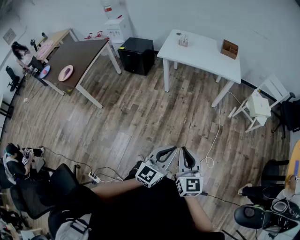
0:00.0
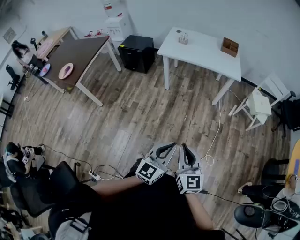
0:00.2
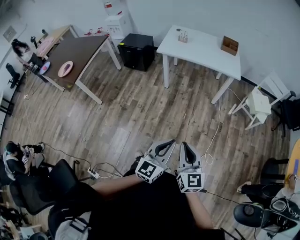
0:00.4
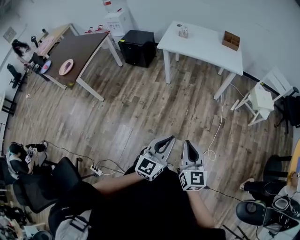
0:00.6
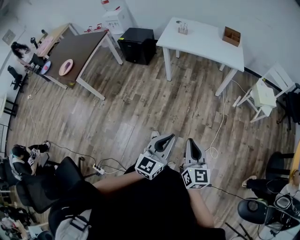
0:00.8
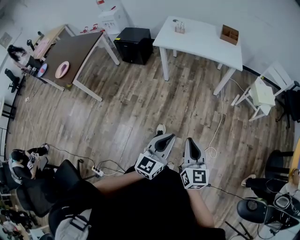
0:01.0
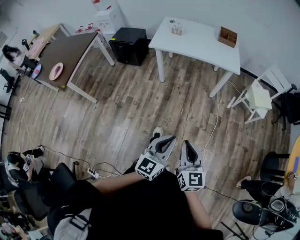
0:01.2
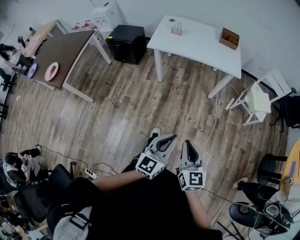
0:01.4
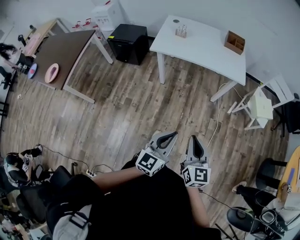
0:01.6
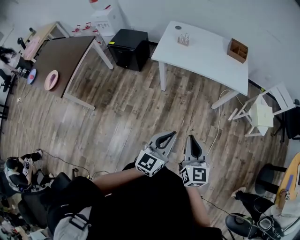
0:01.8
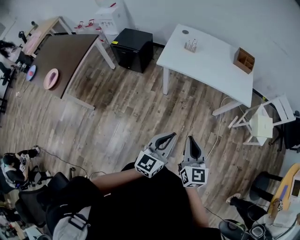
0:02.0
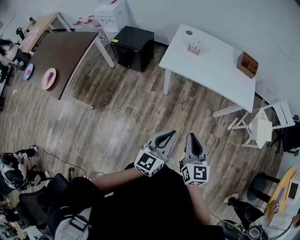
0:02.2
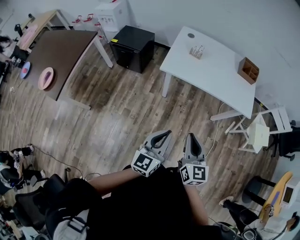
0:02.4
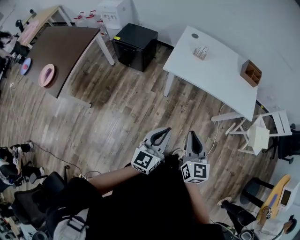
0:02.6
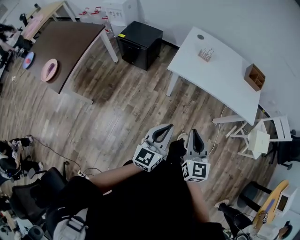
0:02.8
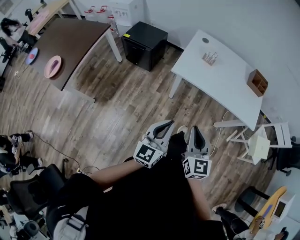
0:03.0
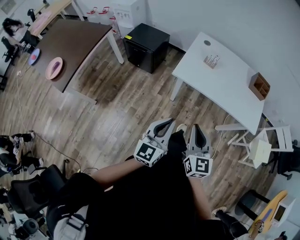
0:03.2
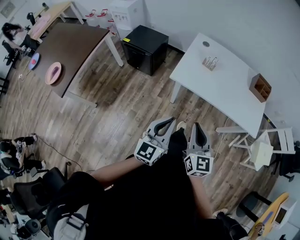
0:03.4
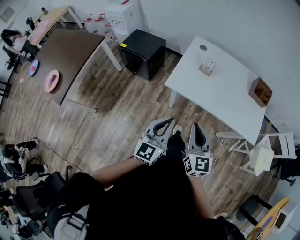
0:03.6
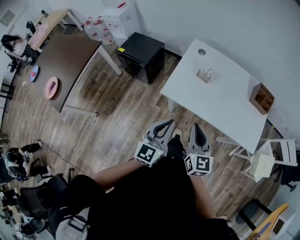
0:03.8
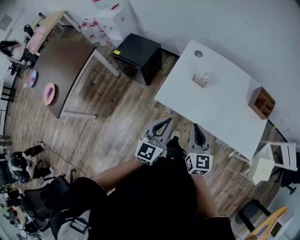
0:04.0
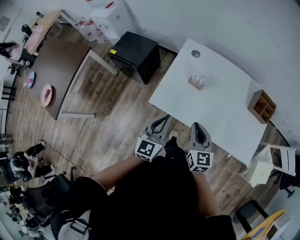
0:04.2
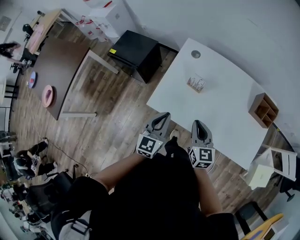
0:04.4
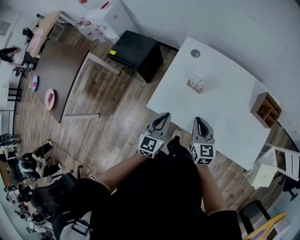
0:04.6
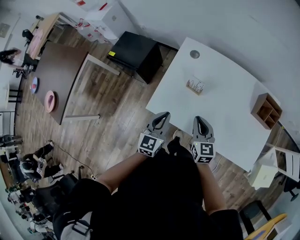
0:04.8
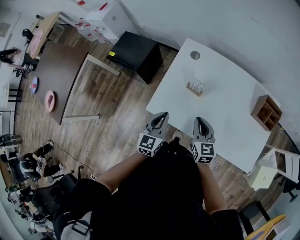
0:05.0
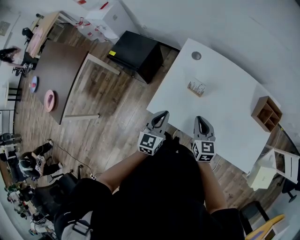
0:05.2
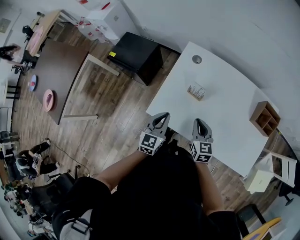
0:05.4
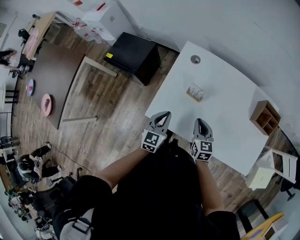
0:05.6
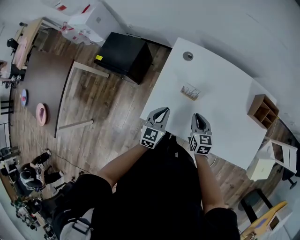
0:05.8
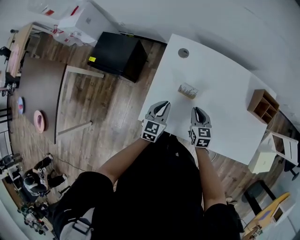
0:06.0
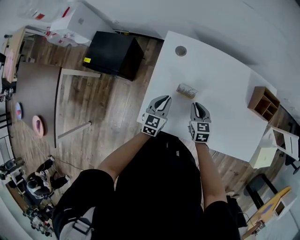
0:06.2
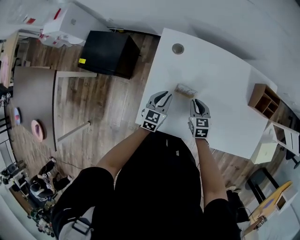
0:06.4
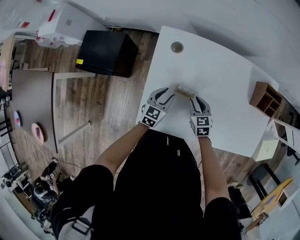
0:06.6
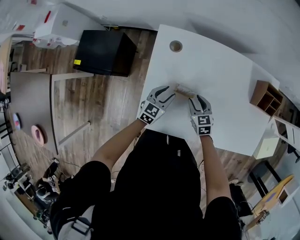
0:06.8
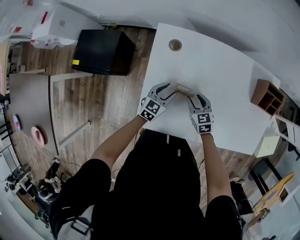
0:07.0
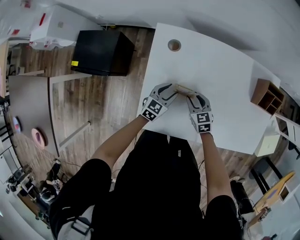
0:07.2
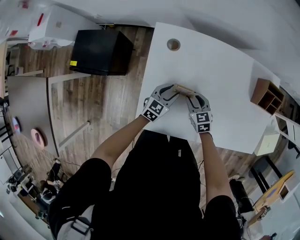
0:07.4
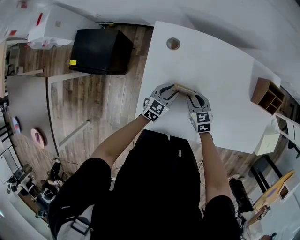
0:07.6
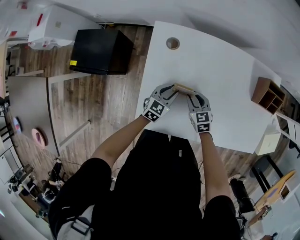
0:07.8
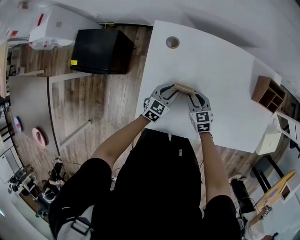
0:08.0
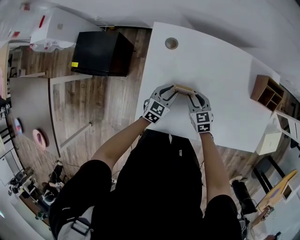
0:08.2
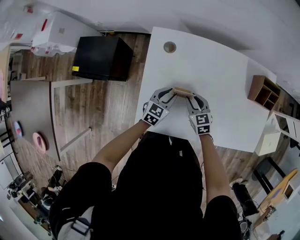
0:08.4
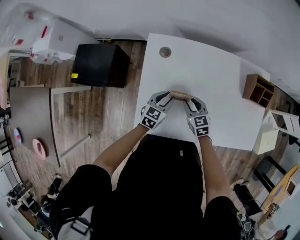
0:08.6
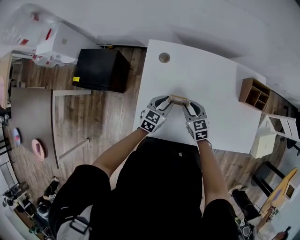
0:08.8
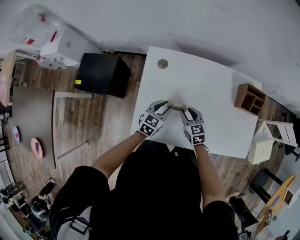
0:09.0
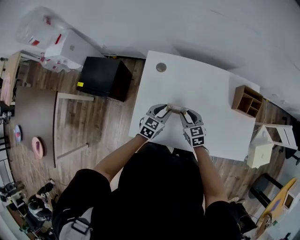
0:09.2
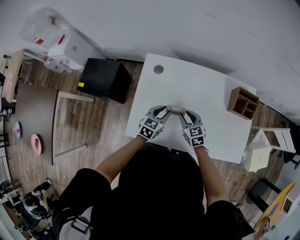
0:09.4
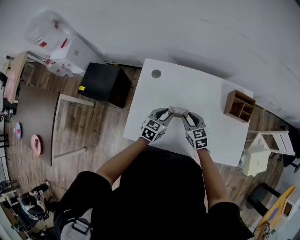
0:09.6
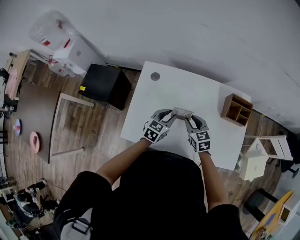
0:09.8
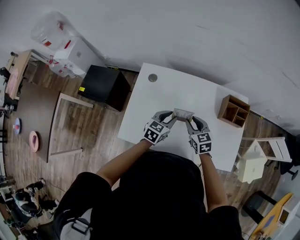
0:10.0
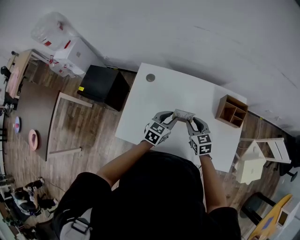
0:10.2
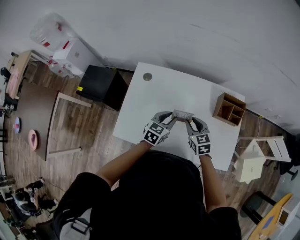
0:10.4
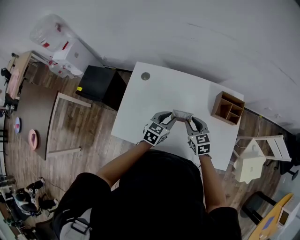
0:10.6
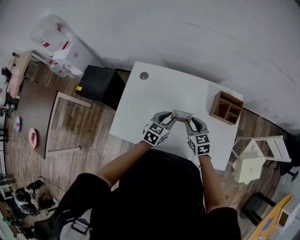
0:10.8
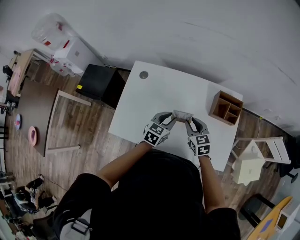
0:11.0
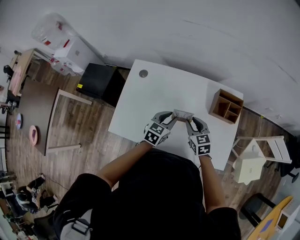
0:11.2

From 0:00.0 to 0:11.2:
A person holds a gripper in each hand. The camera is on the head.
From 0:00.0 to 0:01.6: The two grippers go some 20 cm forward.
From 0:01.6 to 0:03.2: The two grippers go approximately 35 cm forward and to the left.
From 0:03.2 to 0:04.8: The pair of grippers is taken forward, some 40 cm.
From 0:04.8 to 0:06.4: The left gripper shifts roughly 25 cm forward and downward, and turns by approximately 20 degrees. The right gripper goes some 20 cm downward and forward, and swivels about 20 degrees.
From 0:06.4 to 0:08.0: The right gripper opens up. The left gripper heads downward, covering approximately 5 cm.
From 0:08.0 to 0:09.6: The two grippers go some 15 cm upward and to the right.
From 0:09.6 to 0:11.2: Both grippers travel together to the right, some 15 cm.

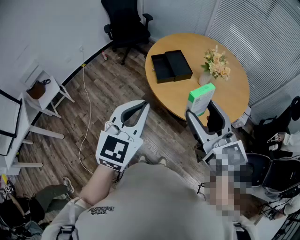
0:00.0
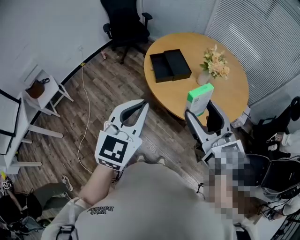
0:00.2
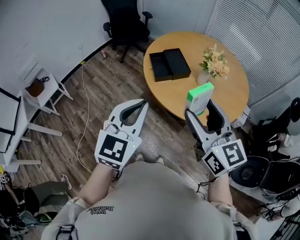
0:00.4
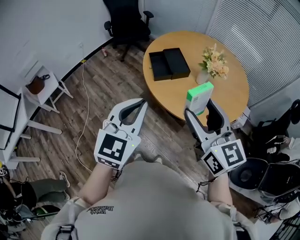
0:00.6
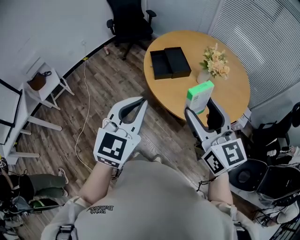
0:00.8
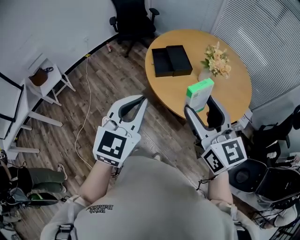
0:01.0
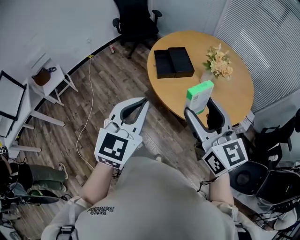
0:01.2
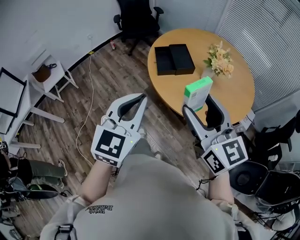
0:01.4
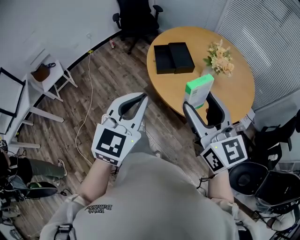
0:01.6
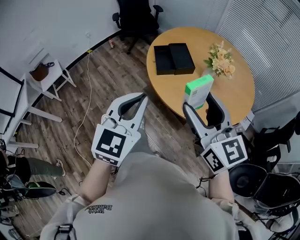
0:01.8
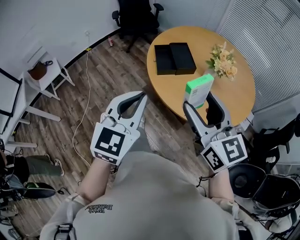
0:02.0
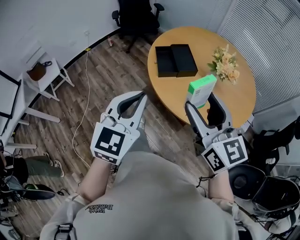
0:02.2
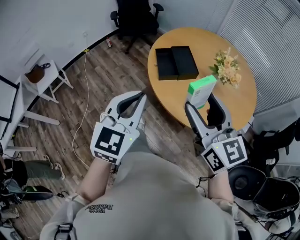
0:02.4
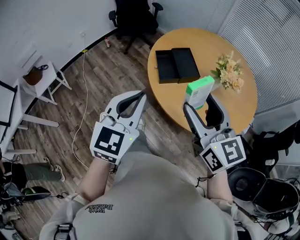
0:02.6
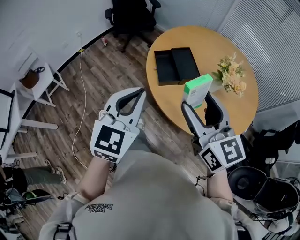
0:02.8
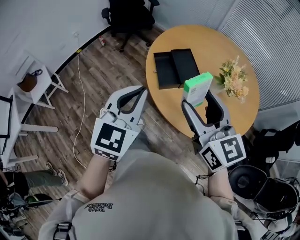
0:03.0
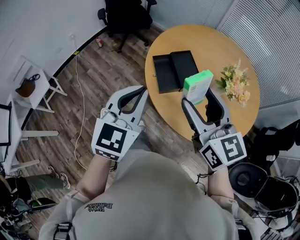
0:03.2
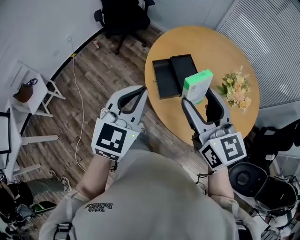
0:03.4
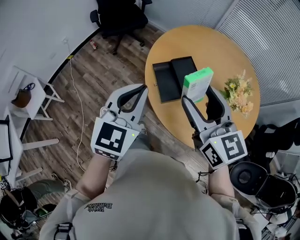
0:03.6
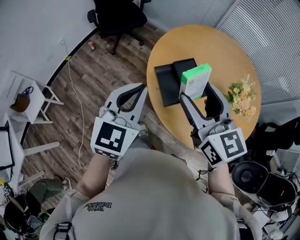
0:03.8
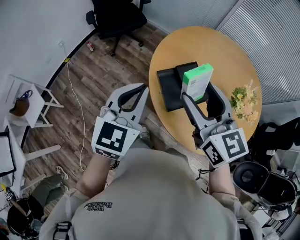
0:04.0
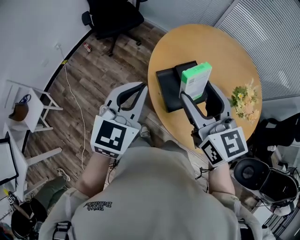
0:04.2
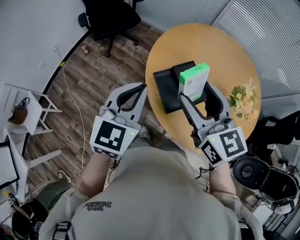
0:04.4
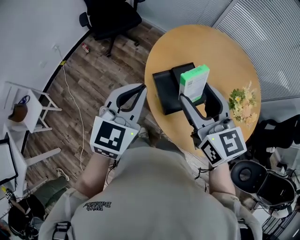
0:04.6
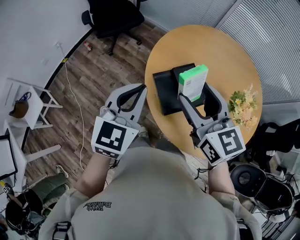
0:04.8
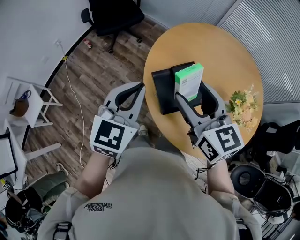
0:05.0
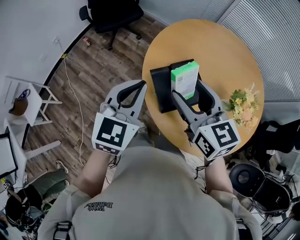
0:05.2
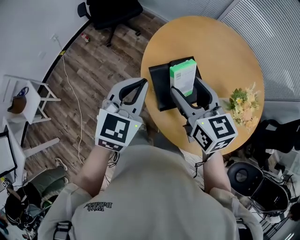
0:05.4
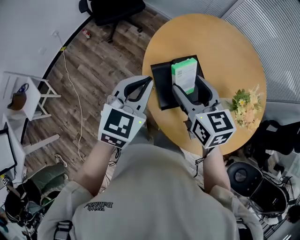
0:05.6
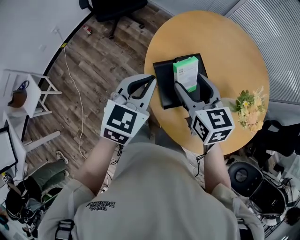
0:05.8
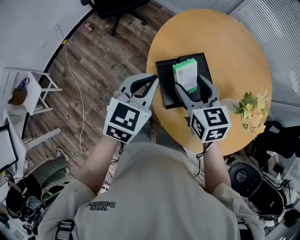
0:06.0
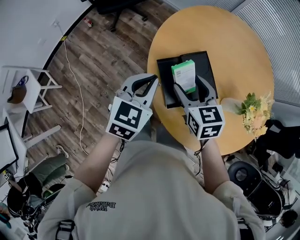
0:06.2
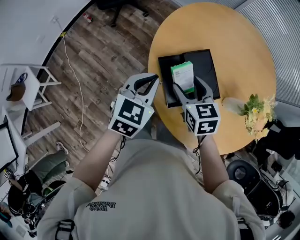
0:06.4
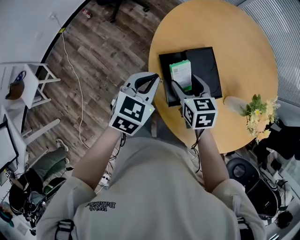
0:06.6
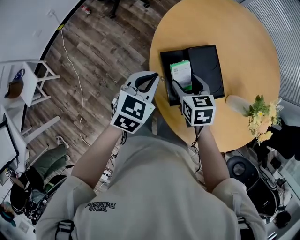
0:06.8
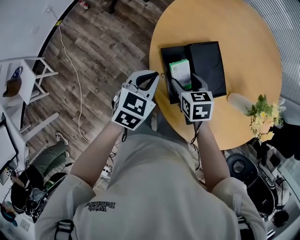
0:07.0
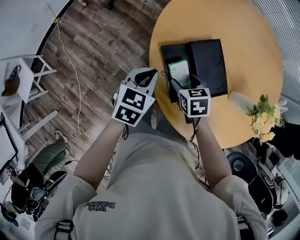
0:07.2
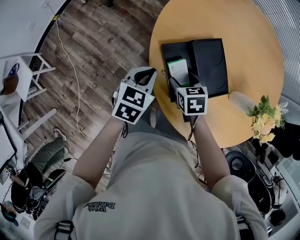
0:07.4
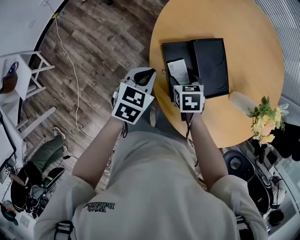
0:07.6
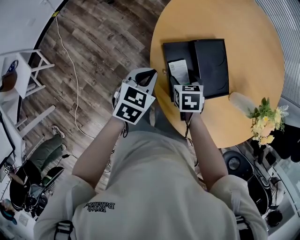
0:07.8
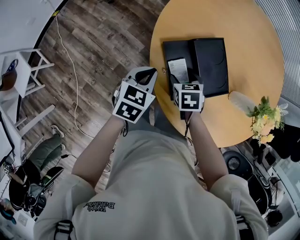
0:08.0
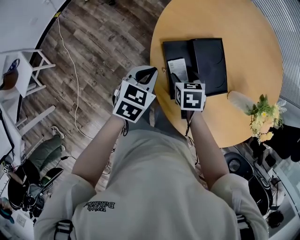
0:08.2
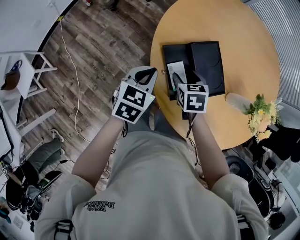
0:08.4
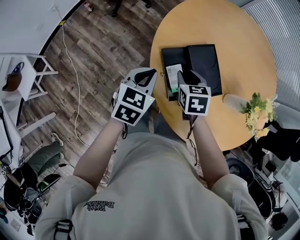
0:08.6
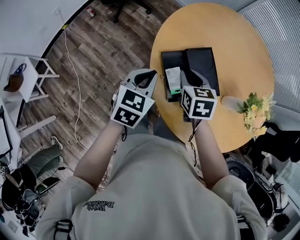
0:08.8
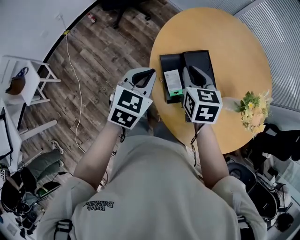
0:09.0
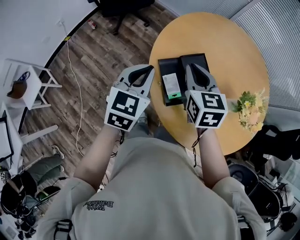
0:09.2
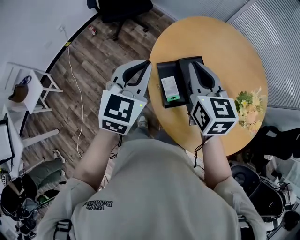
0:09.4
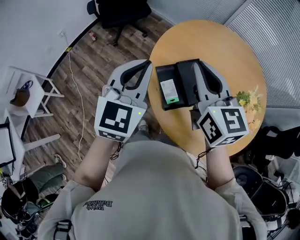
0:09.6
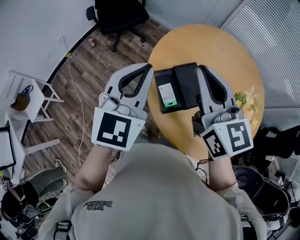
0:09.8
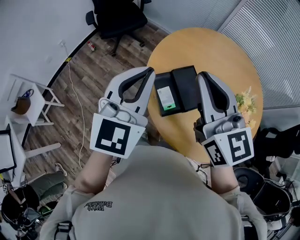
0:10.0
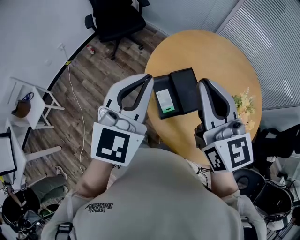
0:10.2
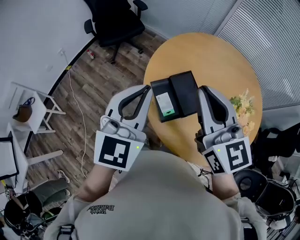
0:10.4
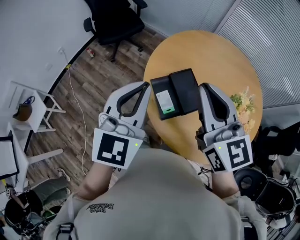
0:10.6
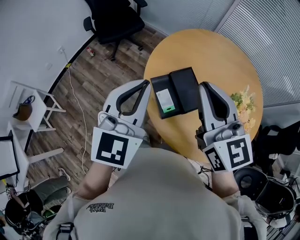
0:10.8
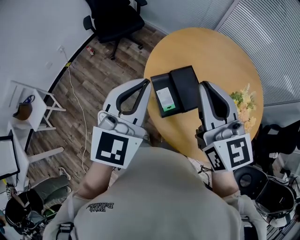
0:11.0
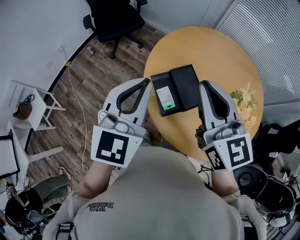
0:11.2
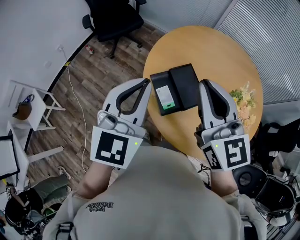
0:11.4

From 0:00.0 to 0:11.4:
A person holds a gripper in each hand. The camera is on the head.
From 0:00.0 to 0:01.4: The grippers make only small movements.
From 0:01.4 to 0:02.8: The two grippers go approximately 15 cm forward.
From 0:02.8 to 0:04.2: The left gripper travels forward by approximately 20 cm. The right gripper travels forward and to the left by about 20 cm.
From 0:04.2 to 0:05.6: The right gripper goes some 15 cm downward and forward, while the left gripper goes some 10 cm downward, to the right and forward.
From 0:05.6 to 0:07.2: Both grippers travel together downward, roughly 25 cm. The right gripper points its fingers some 30 degrees further downward. The left gripper swivels about 30 degrees.
From 0:07.2 to 0:08.6: The right gripper moves upward, some 5 cm, and closes its fingers.
From 0:08.6 to 0:10.0: The grippers both shift upward by about 35 cm. The right gripper tilts its fingers about 50 degrees upward, and closes. Meanwhile the left gripper tips its fingers upward by approximately 30 degrees.
From 0:10.0 to 0:11.4: There are only small adjustments of the grippers.

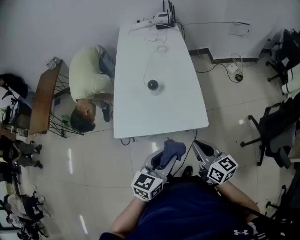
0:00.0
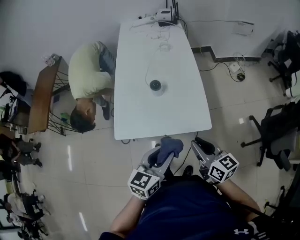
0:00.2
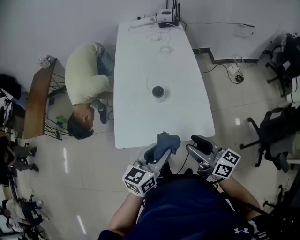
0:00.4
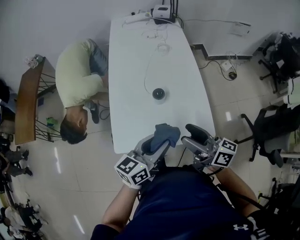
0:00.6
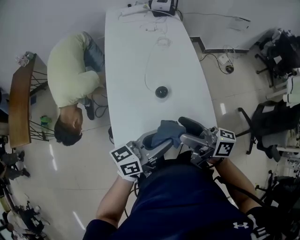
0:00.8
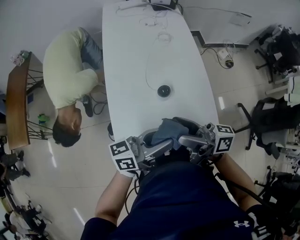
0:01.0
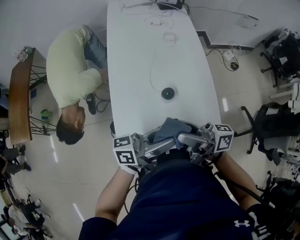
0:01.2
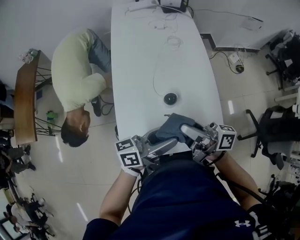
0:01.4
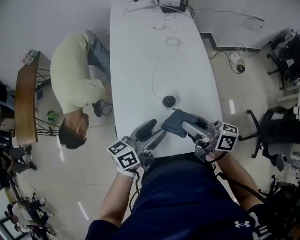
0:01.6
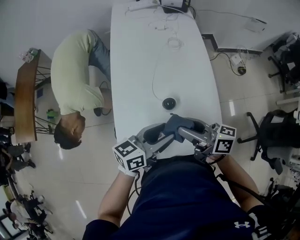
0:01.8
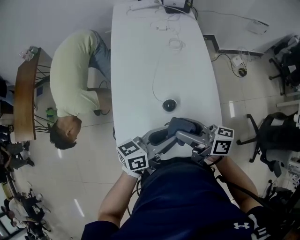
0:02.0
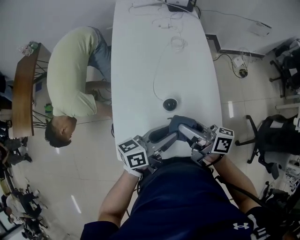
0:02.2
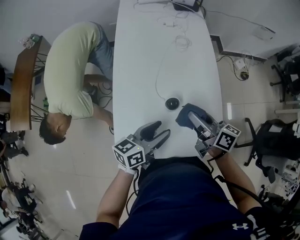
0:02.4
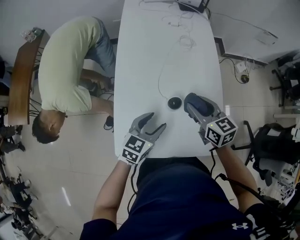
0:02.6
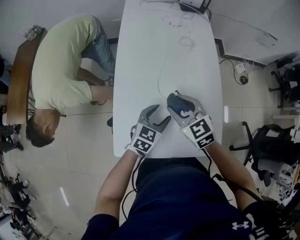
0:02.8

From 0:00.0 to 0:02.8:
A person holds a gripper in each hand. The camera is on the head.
From 0:00.0 to 0:01.4: Both grippers travel together forward and to the left, roughly 25 cm. The left gripper rotates roughly 50 degrees, and opens its fingers. Meanwhile the right gripper changes its angle by roughly 50 degrees, and opens its fingers.
From 0:01.4 to 0:02.8: Both grippers move downward and forward, about 15 cm. The left gripper tilts its fingers roughly 40 degrees downward, and closes and opens again; the right gripper rotates around the line of its fingers by about 60 degrees, counterclockwise from behind.
